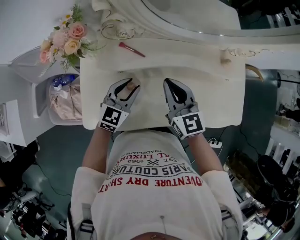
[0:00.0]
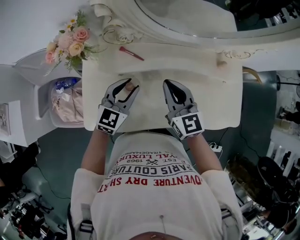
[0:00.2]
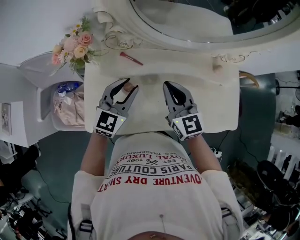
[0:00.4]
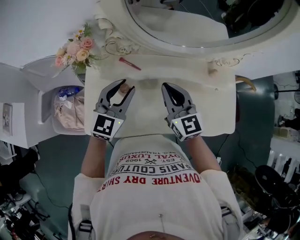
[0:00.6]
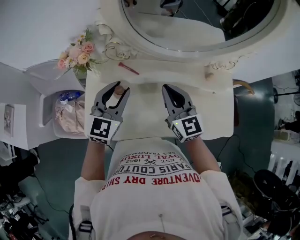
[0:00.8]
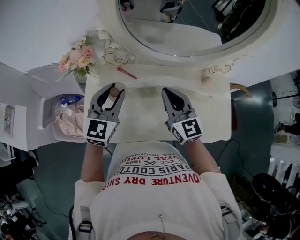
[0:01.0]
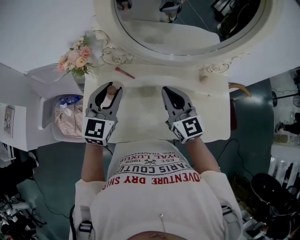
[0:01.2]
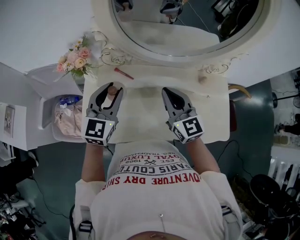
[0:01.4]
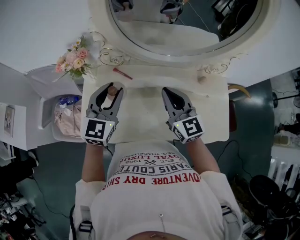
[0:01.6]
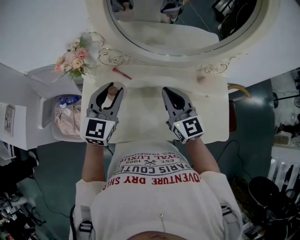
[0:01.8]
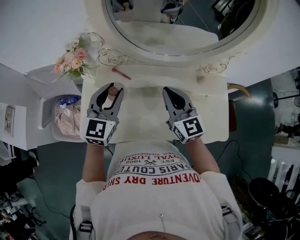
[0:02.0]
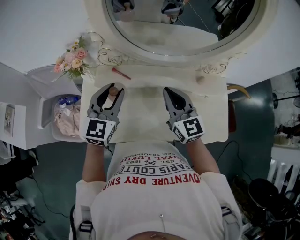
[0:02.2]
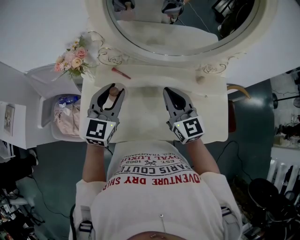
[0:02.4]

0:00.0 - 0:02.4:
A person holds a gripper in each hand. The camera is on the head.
0:00.0 - 0:01.2: The left gripper is displaced upward by some 20 cm, and turns by some 20 degrees, while the right gripper travels upward and to the right by approximately 10 cm.
0:01.2 - 0:02.4: The grippers stay close to where they were, moving slightly.

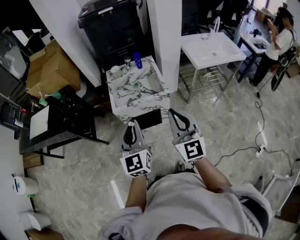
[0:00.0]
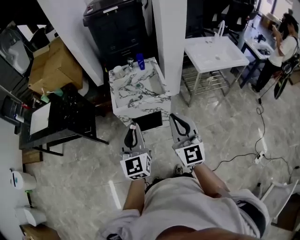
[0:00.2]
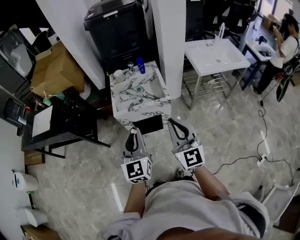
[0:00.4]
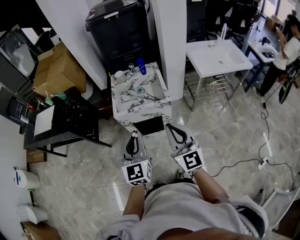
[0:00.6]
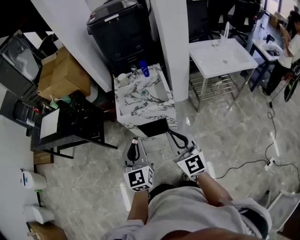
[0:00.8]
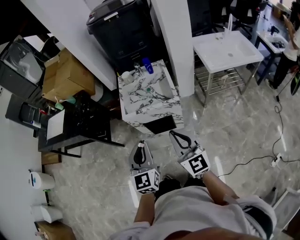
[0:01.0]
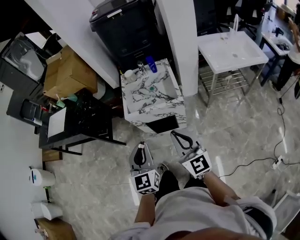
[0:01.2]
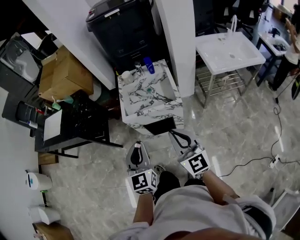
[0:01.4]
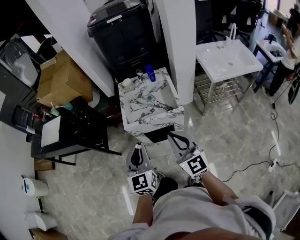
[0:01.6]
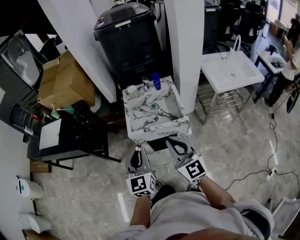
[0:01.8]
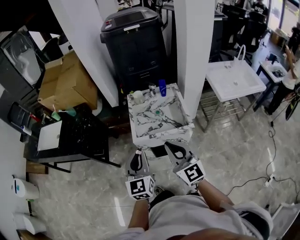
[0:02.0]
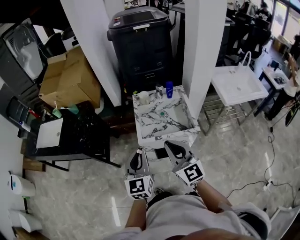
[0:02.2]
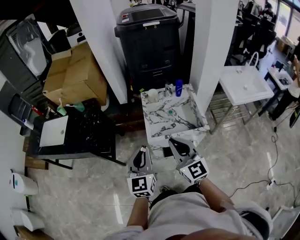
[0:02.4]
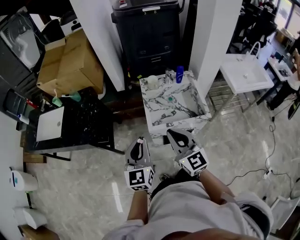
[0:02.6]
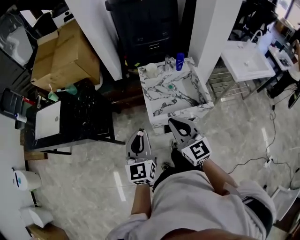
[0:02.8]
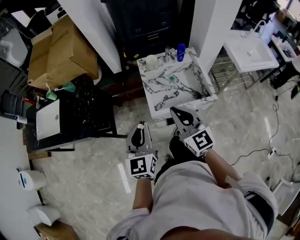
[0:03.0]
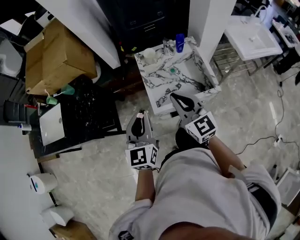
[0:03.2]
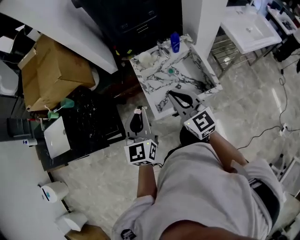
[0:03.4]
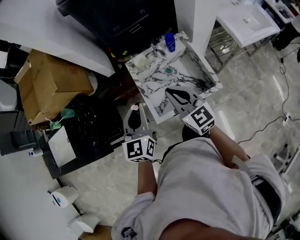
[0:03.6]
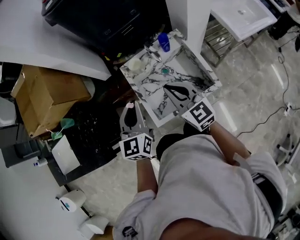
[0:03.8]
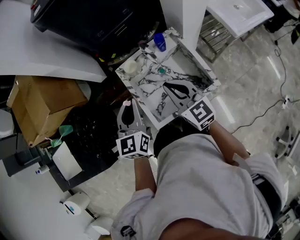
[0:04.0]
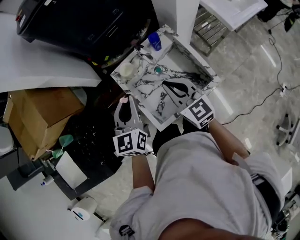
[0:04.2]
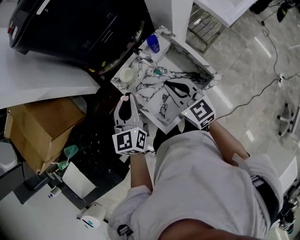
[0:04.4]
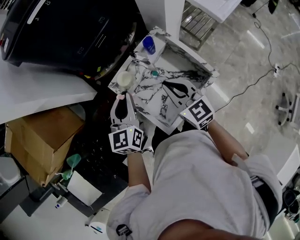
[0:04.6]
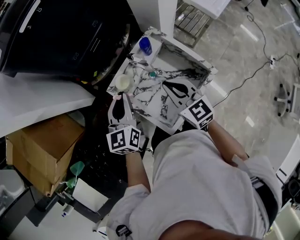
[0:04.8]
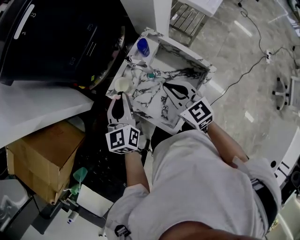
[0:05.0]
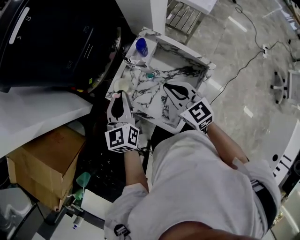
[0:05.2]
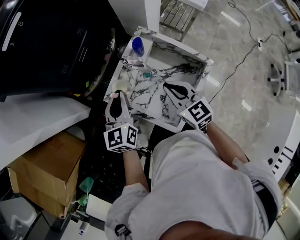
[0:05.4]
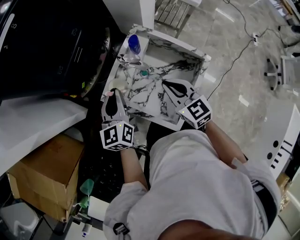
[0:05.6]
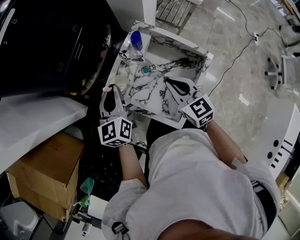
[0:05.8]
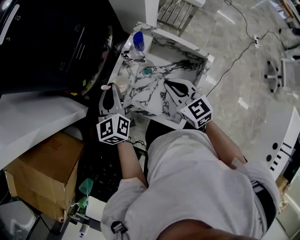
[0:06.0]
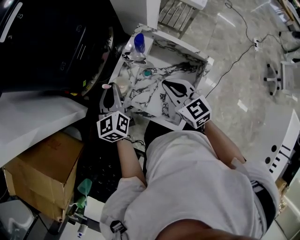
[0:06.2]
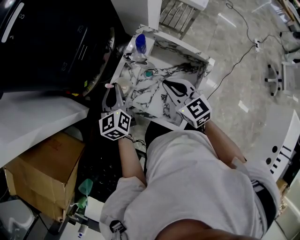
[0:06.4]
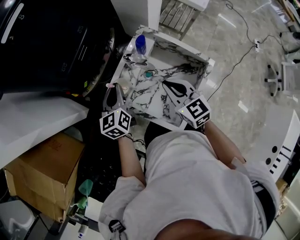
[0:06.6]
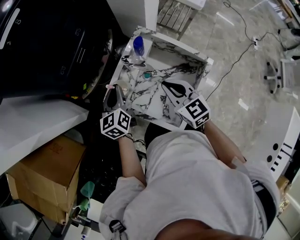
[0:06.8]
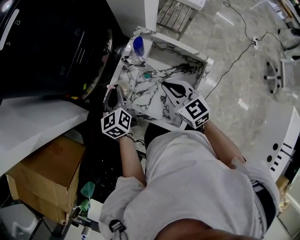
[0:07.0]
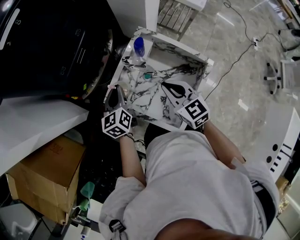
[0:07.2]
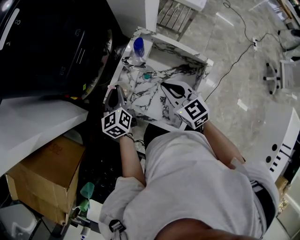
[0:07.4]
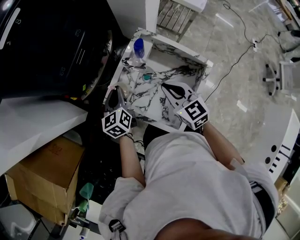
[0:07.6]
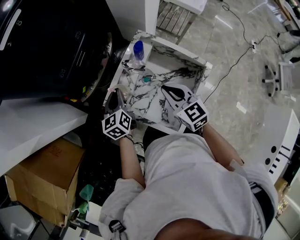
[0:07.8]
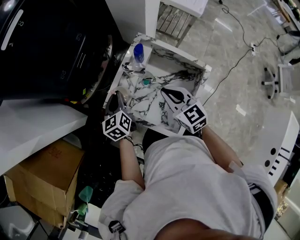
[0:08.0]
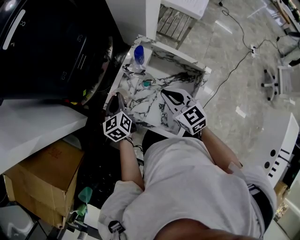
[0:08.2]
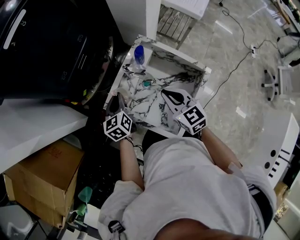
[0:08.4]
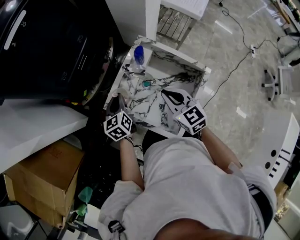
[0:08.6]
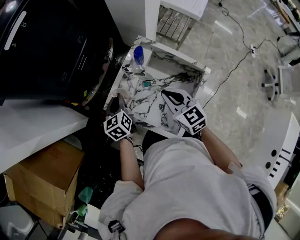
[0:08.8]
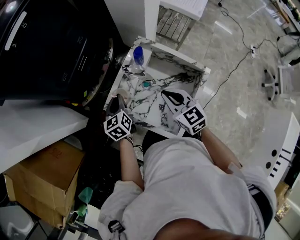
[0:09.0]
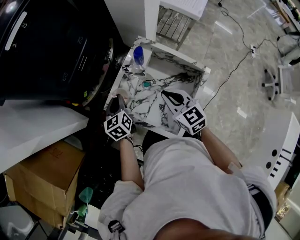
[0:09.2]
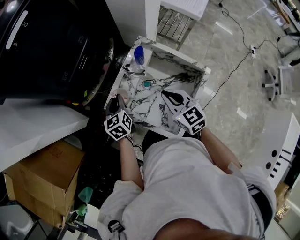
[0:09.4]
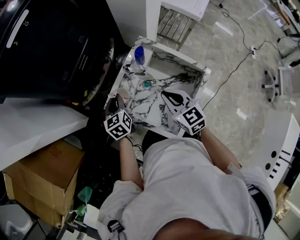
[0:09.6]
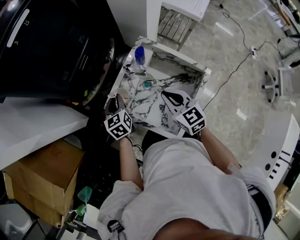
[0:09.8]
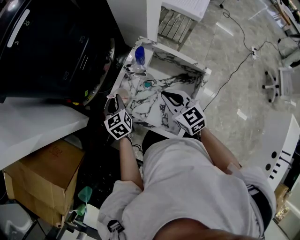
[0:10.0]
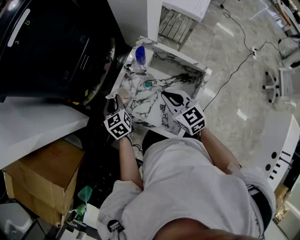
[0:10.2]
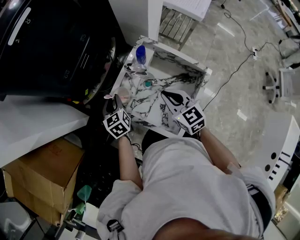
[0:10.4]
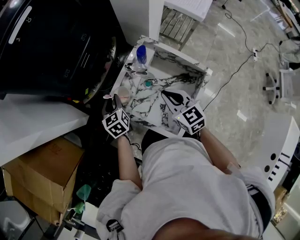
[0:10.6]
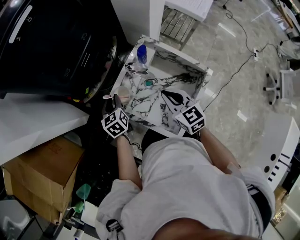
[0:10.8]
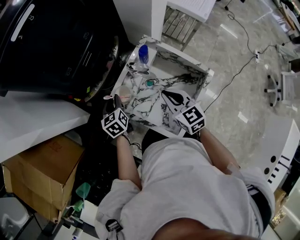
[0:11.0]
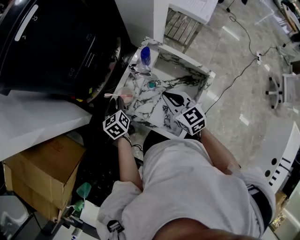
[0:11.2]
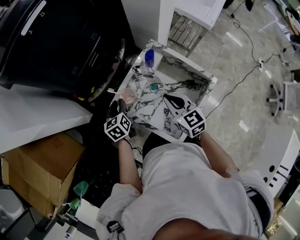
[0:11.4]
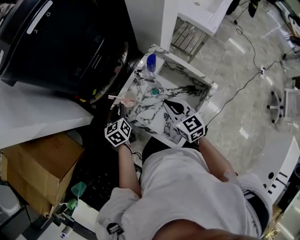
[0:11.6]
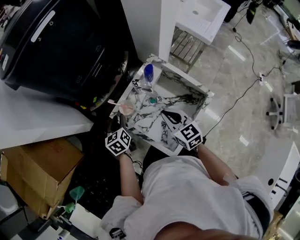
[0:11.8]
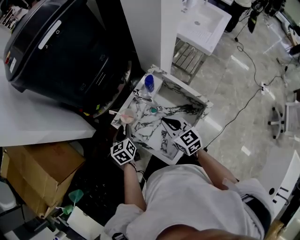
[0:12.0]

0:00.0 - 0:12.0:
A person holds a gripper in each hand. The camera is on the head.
0:00.0 - 0:01.6: The right gripper is displaced forward and downward by about 10 cm; the left gripper is displaced downward by some 5 cm.
0:01.6 - 0:03.0: Both grippers move forward and to the left, some 25 cm.
0:03.0 - 0:04.4: The grippers both shift forward by about 30 cm. The left gripper changes its angle by roughly 30 degrees; the right gripper swivels about 20 degrees.
0:04.4 - 0:06.0: The right gripper shifts roughly 5 cm downward, and turns by some 20 degrees. The left gripper travels forward, downward and to the left by approximately 15 cm.
0:06.0 - 0:07.6: The left gripper moves downward, about 10 cm.
0:07.6 - 0:10.4: The grippers move only a little.
0:10.4 - 0:12.0: The left gripper goes some 5 cm backward.

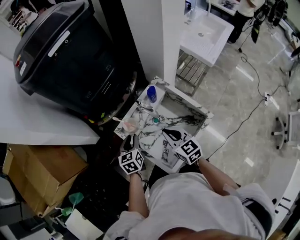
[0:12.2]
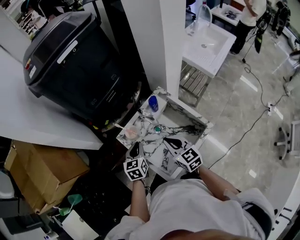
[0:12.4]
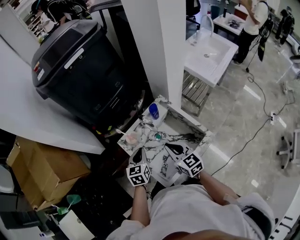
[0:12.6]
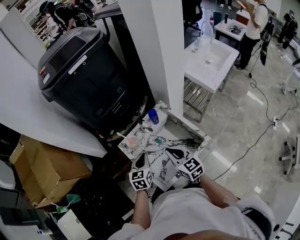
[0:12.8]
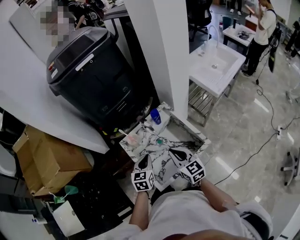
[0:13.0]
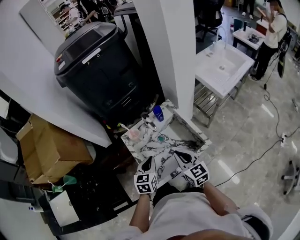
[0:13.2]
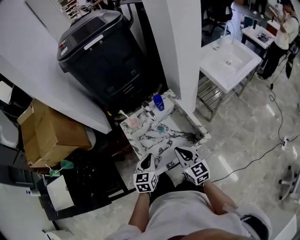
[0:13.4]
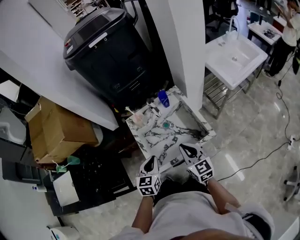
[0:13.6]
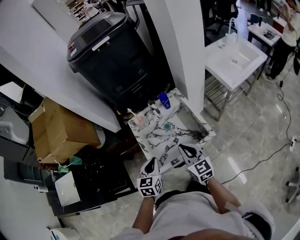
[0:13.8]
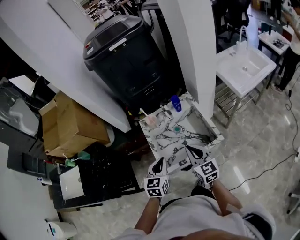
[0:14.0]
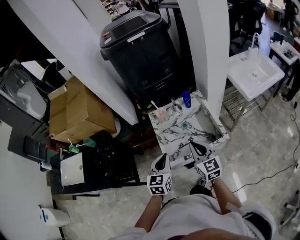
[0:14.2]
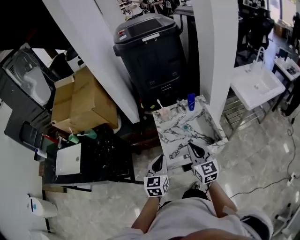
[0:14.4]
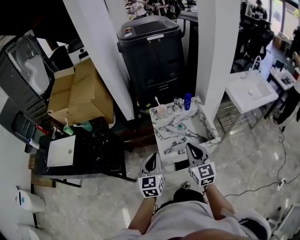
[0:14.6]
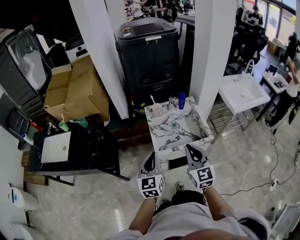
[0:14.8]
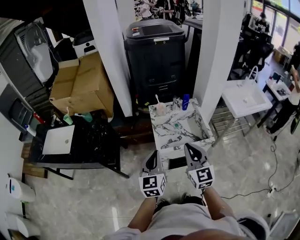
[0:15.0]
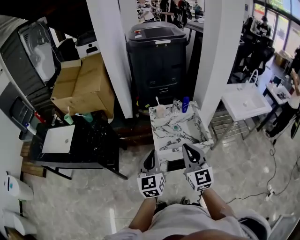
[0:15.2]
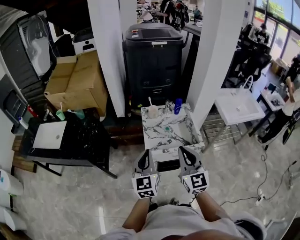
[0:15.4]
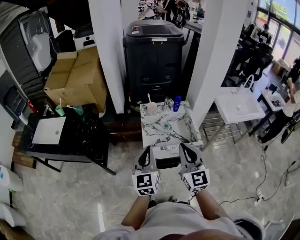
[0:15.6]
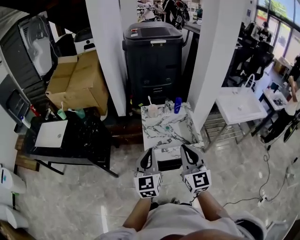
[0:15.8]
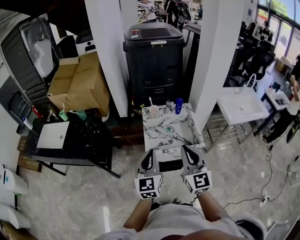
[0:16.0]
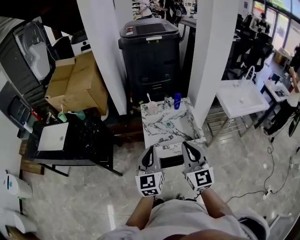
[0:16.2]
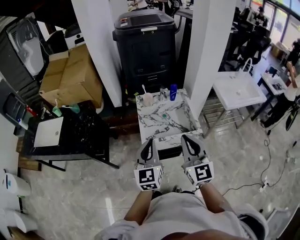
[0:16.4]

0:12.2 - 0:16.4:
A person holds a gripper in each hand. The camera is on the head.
0:12.2 - 0:13.6: Both grippers travel together backward and to the right, about 20 cm. The left gripper closes.
0:13.6 - 0:15.0: The left gripper shifts approximately 25 cm backward, upward and to the left, and turns by about 30 degrees. Meanwhile the right gripper moves upward, backward and to the left, some 25 cm, and swivels about 20 degrees.
0:15.0 - 0:16.4: The two grippers go approximately 5 cm to the right.

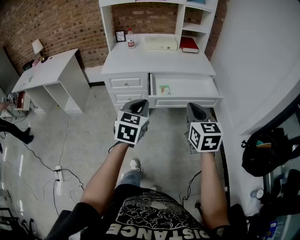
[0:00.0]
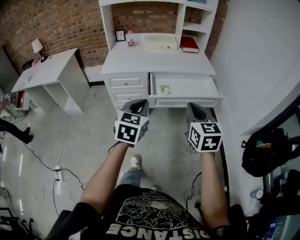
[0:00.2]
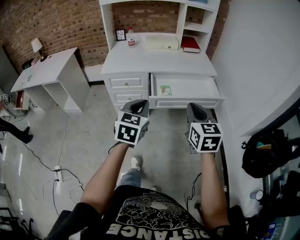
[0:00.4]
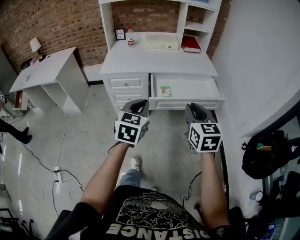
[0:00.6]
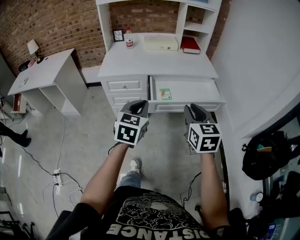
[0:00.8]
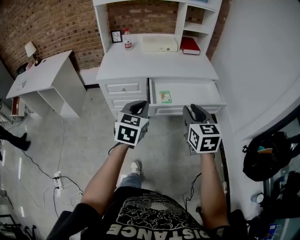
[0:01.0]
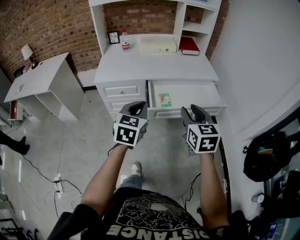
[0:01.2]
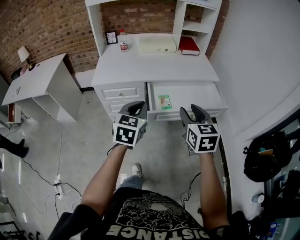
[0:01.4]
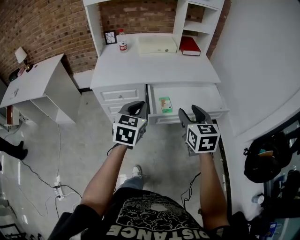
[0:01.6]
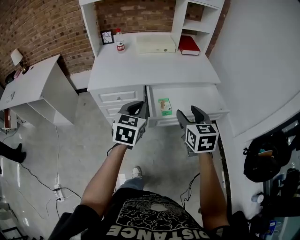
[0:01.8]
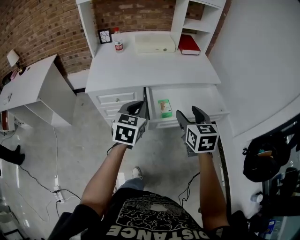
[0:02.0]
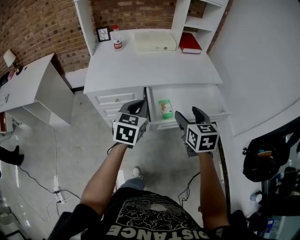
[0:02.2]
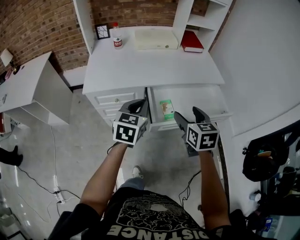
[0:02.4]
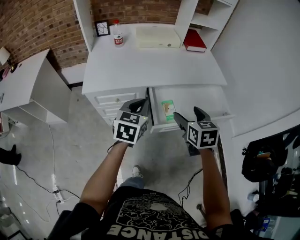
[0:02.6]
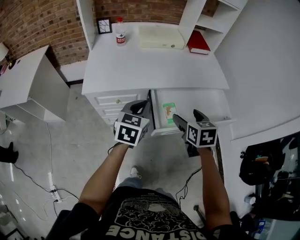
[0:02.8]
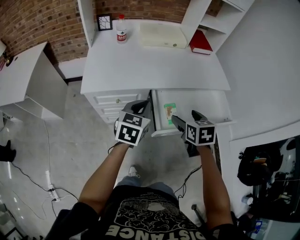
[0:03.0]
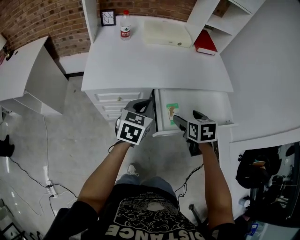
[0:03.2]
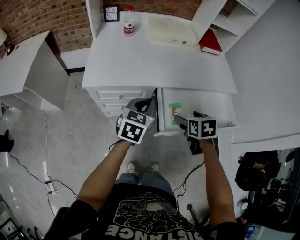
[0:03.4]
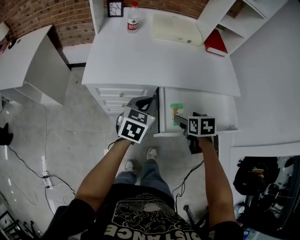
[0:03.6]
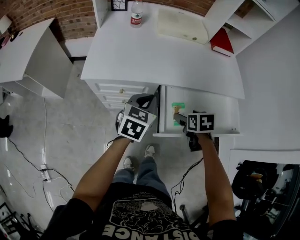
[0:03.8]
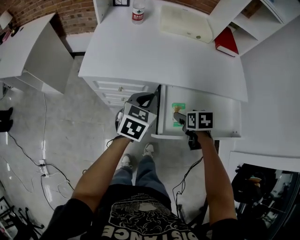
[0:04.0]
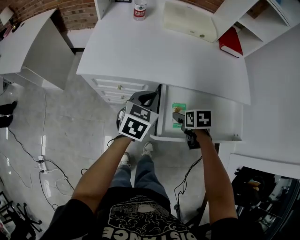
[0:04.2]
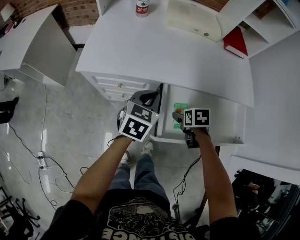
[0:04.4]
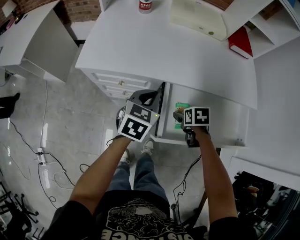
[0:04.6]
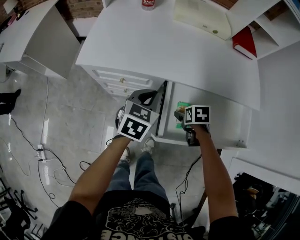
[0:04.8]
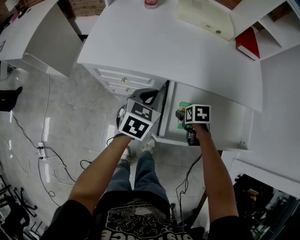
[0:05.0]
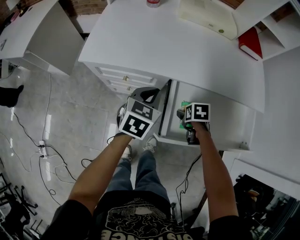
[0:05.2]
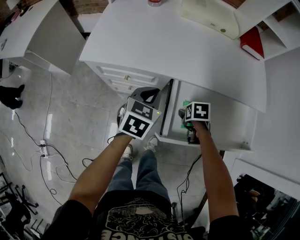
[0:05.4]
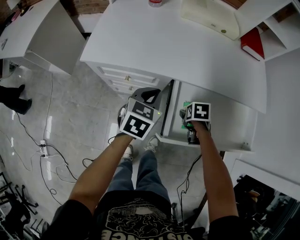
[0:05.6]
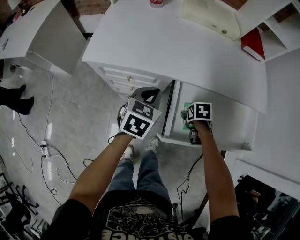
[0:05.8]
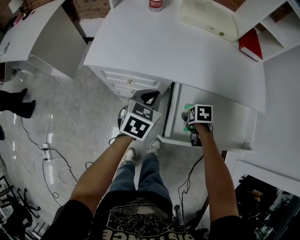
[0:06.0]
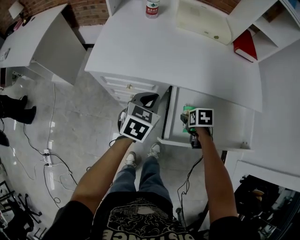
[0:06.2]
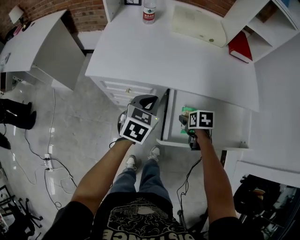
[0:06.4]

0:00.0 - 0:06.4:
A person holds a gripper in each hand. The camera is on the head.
0:00.0 - 0:01.6: Both grippers travel together forward, roughly 20 cm. The right gripper opens its fingers.
0:01.6 - 0:03.2: Both grippers travel together forward, downward and to the left, approximately 20 cm. The right gripper changes its angle by approximately 30 degrees, and opens up.
0:03.2 - 0:04.8: The right gripper goes some 25 cm downward and forward, and swivels roughly 30 degrees; the left gripper goes approximately 15 cm downward and forward.
0:04.8 - 0:06.4: There are only small adjustments of the grippers.
